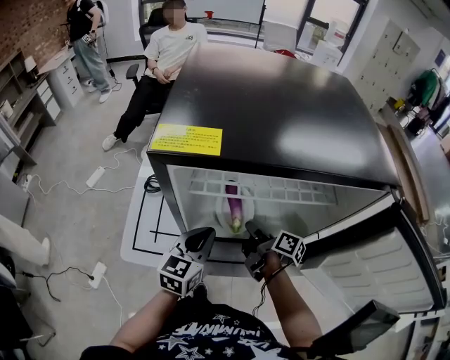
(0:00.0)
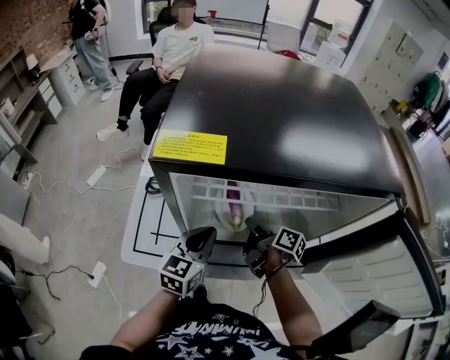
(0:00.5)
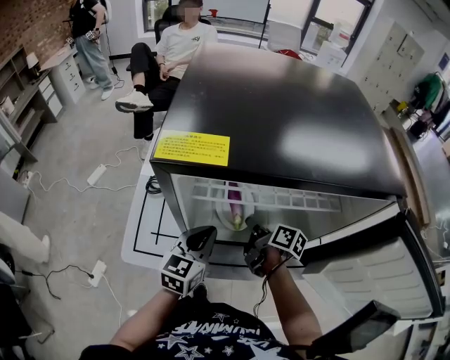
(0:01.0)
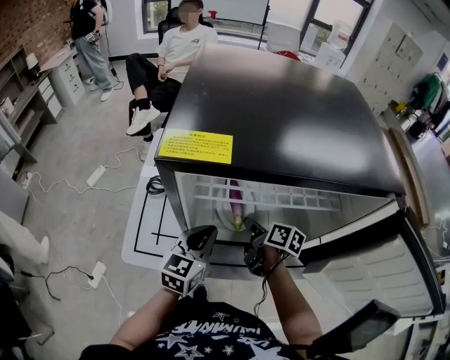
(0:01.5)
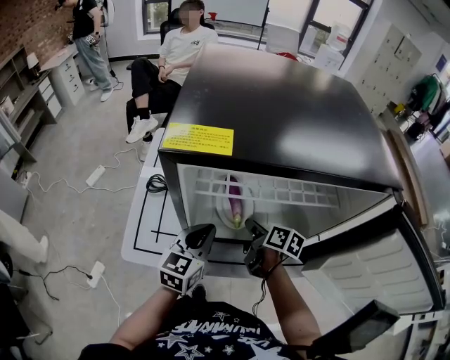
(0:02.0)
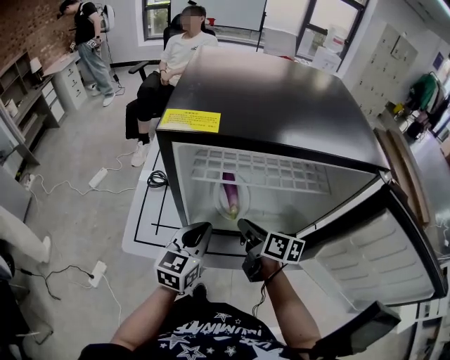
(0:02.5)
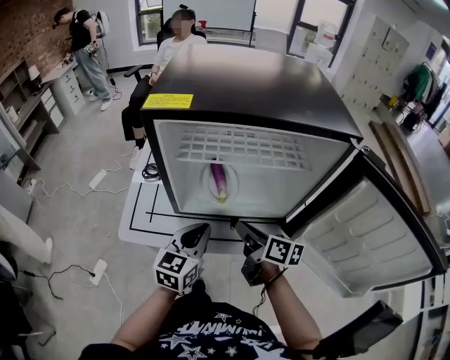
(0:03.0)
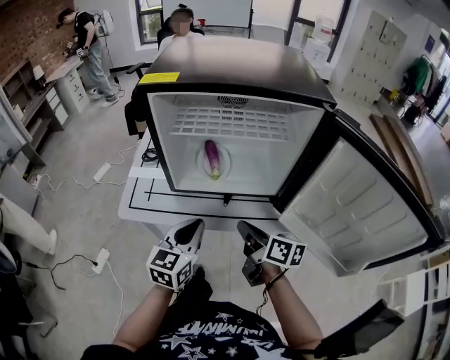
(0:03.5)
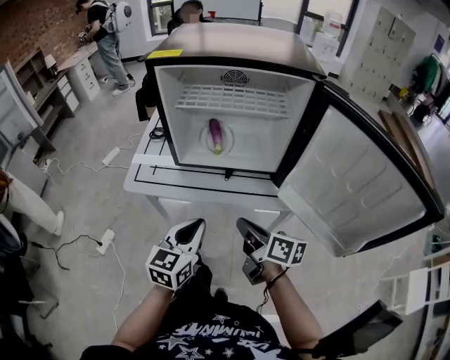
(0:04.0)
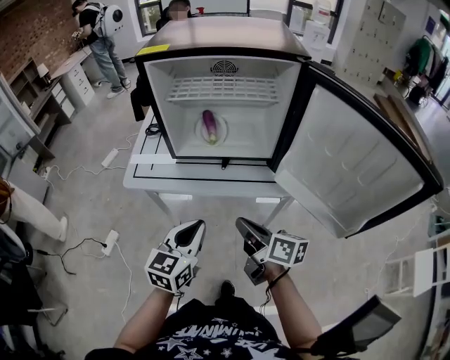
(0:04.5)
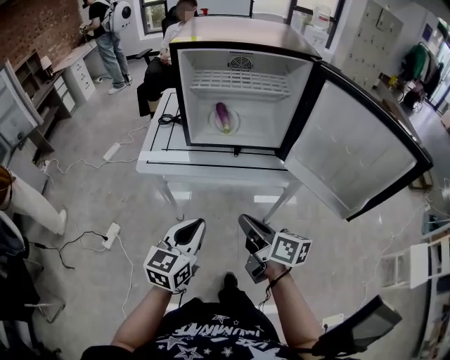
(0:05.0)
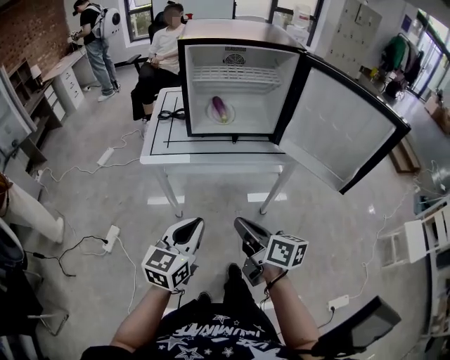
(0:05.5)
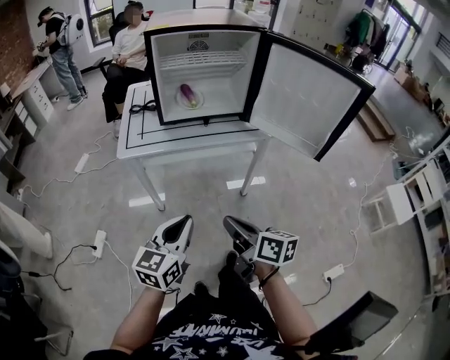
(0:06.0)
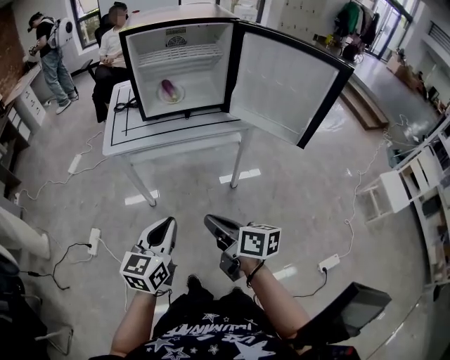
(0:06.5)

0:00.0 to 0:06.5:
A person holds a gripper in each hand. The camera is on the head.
0:02.0 to 0:04.5: The left gripper moves some 30 cm.
0:04.5 to 0:06.5: The left gripper moves approximately 25 cm.

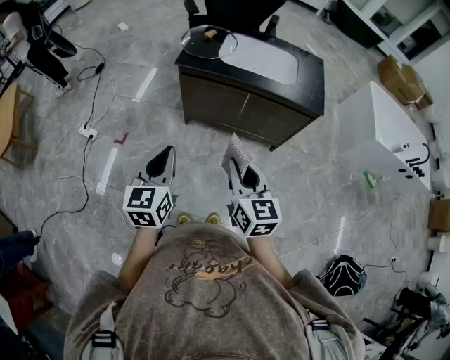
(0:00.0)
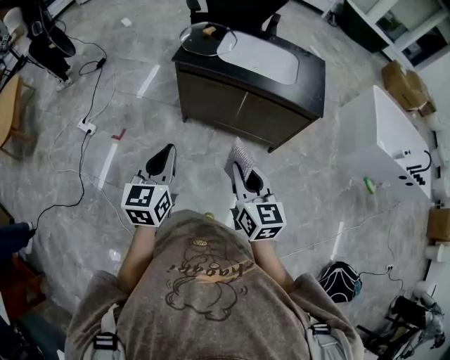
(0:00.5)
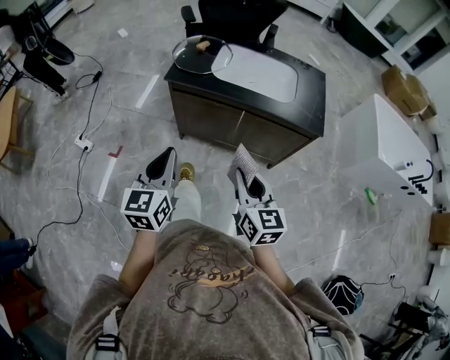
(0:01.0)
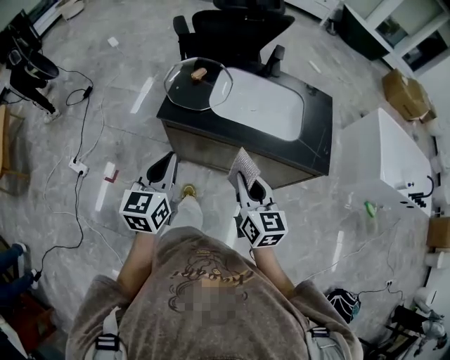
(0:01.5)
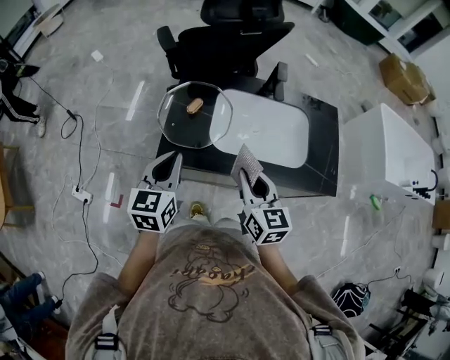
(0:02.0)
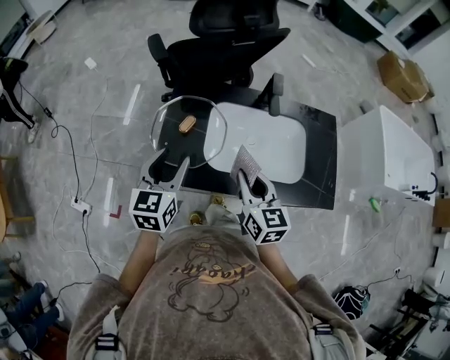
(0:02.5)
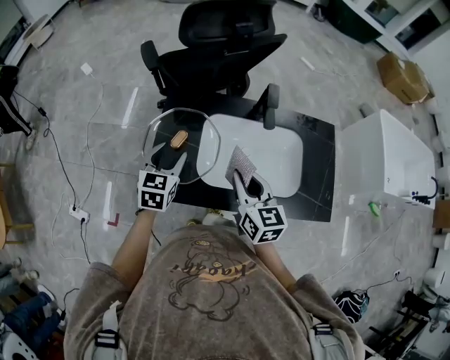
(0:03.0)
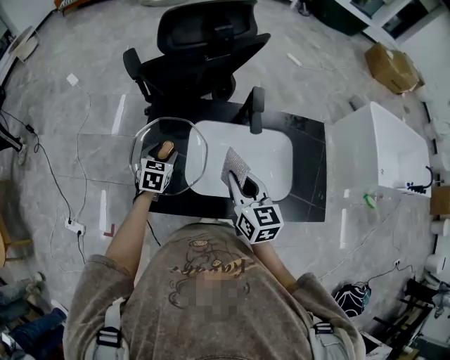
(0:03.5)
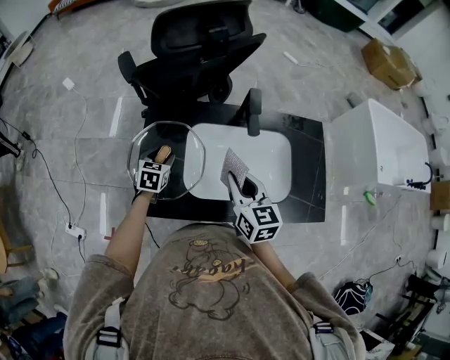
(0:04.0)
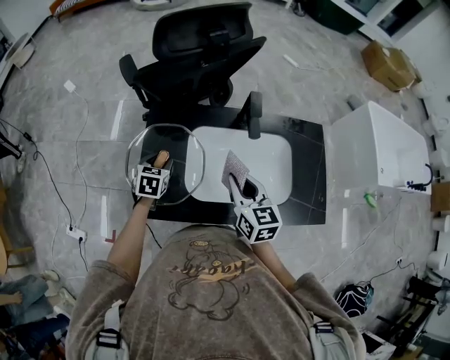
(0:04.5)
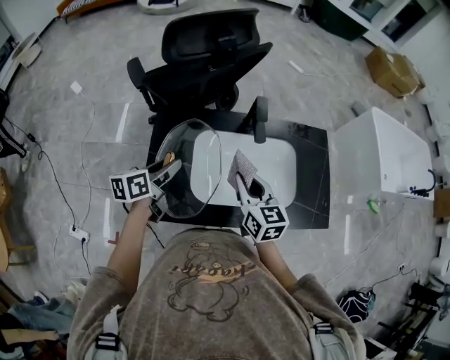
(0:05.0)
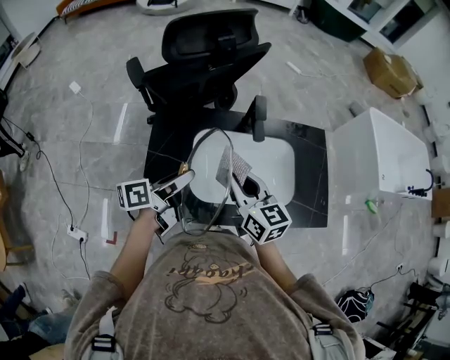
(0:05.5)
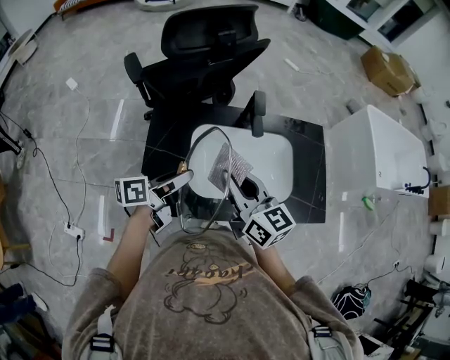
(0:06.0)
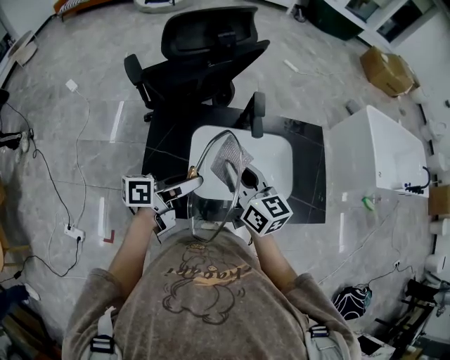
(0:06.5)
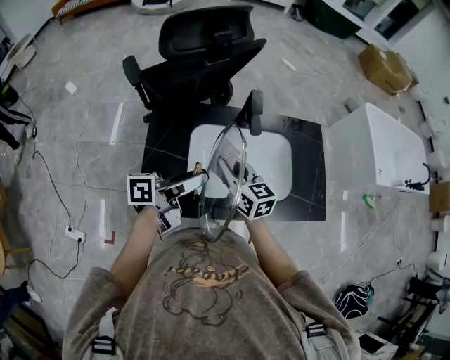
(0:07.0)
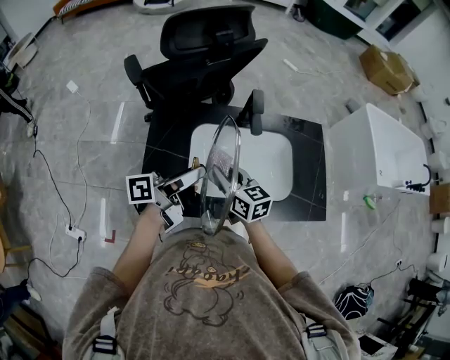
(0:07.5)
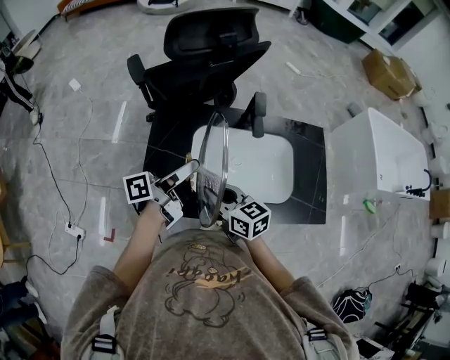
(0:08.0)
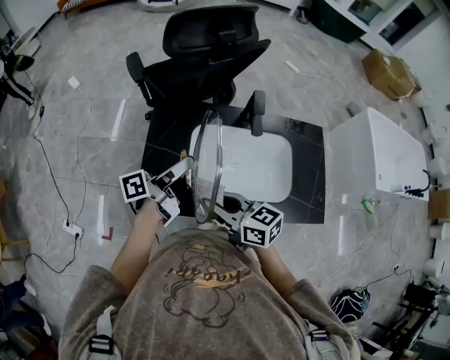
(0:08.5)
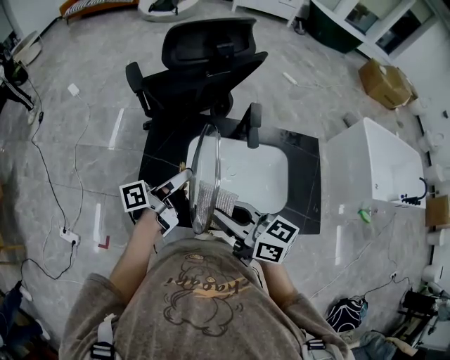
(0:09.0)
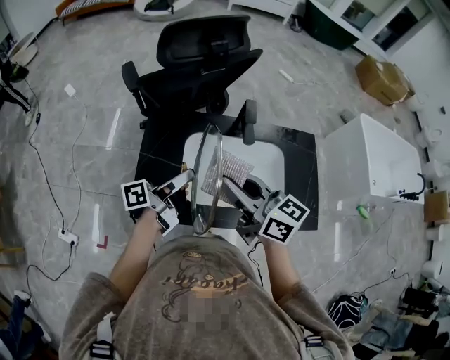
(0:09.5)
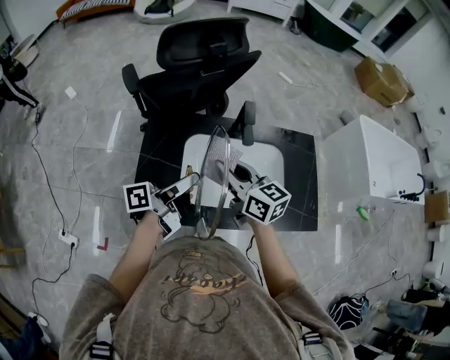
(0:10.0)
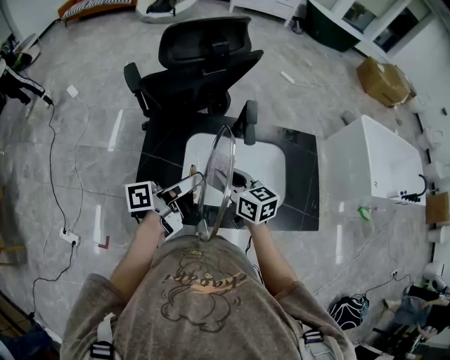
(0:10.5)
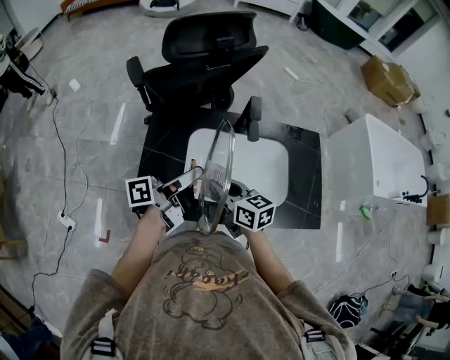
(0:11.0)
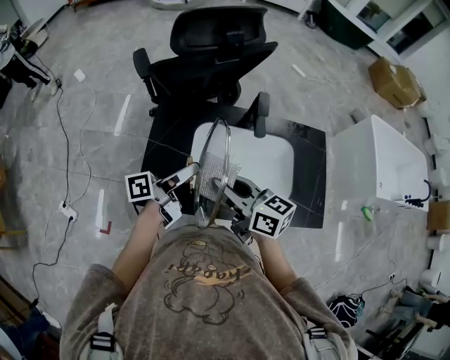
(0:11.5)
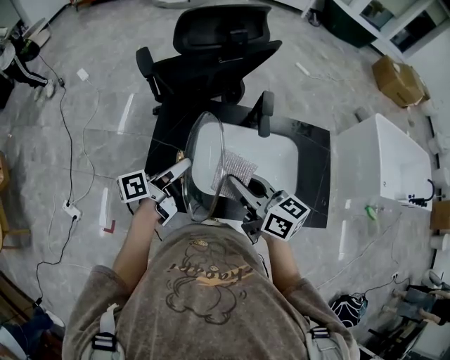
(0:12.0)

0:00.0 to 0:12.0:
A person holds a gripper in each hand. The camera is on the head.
0:00.0 to 0:02.0: Both grippers are carried forward, approximately 40 cm.
0:02.0 to 0:04.0: The left gripper is displaced forward and downward by roughly 30 cm, swivels approximately 30 degrees, and opens up. The right gripper is displaced forward by some 15 cm.
0:04.0 to 0:06.0: The left gripper shifts some 20 cm upward, backward and to the right, and points its fingers approximately 40 degrees further upward. Meanwhile the right gripper moves upward, roughly 10 cm.
0:06.0 to 0:08.0: The right gripper goes about 10 cm downward, and turns by some 20 degrees, while the left gripper swivels about 20 degrees.
0:08.0 to 0:10.0: The right gripper shifts roughly 15 cm upward, forward and to the right.
0:10.0 to 0:12.0: The right gripper heads backward, covering some 5 cm, and reaches about 10 cm downward, then returns; the left gripper travels to the left by some 5 cm.

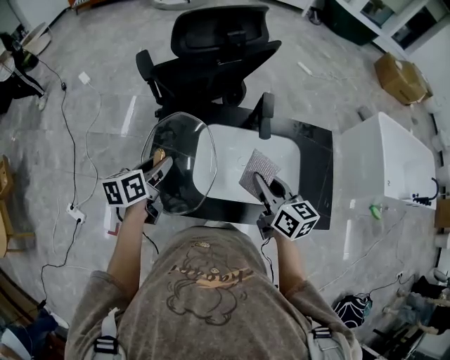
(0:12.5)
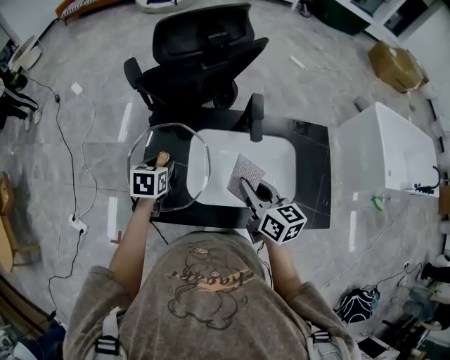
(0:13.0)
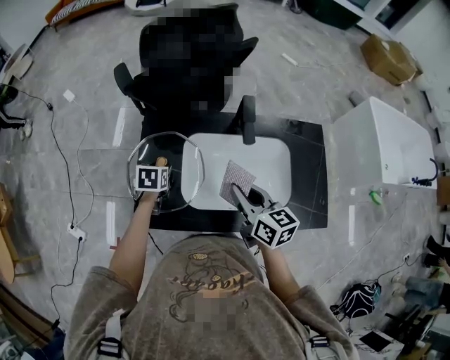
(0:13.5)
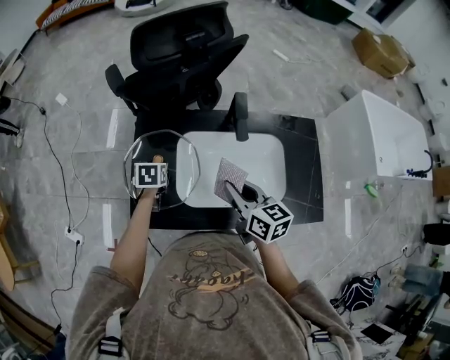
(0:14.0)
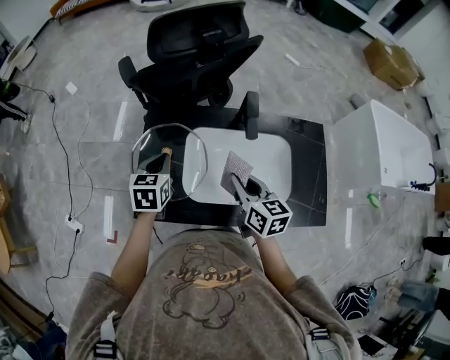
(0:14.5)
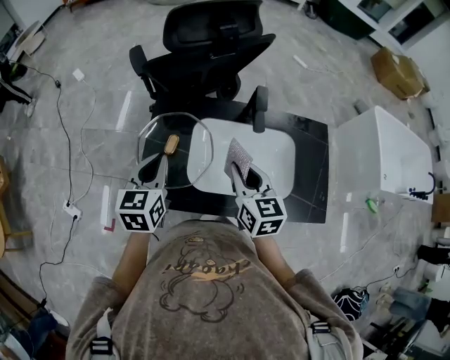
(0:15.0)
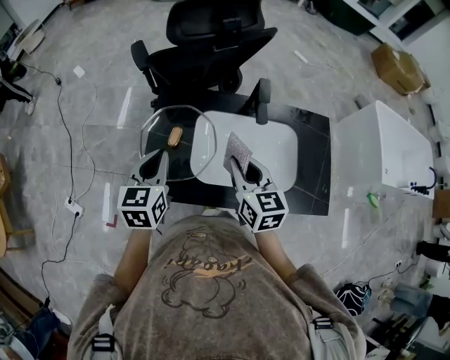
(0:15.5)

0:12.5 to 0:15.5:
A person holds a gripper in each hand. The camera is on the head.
0:12.5 to 0:14.0: The left gripper moves downward and forward, approximately 15 cm, and angles its fingers downward, by about 30 degrees.
0:14.0 to 0:15.5: The right gripper shifts by roughly 5 cm. Meanwhile the left gripper shifts approximately 20 cm upward and backward, angles its fingers upward, by approximately 40 degrees, and closes.

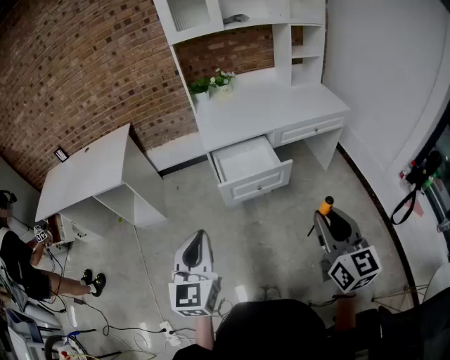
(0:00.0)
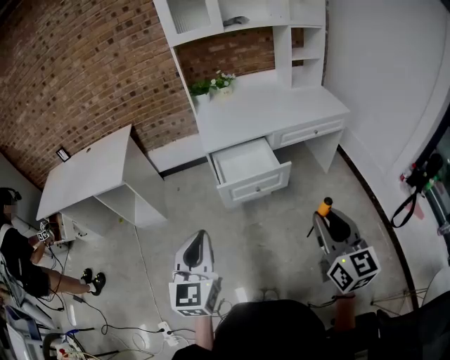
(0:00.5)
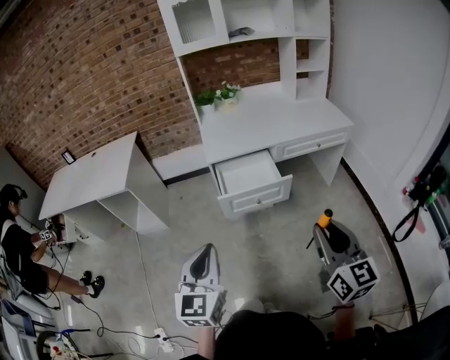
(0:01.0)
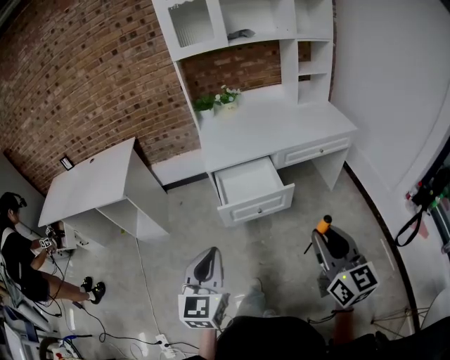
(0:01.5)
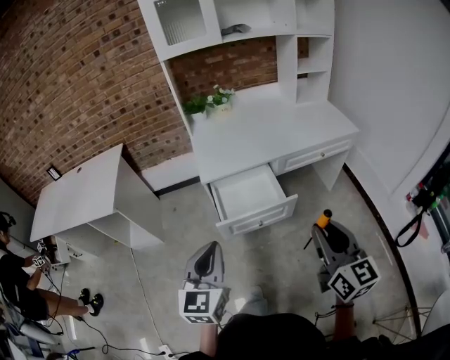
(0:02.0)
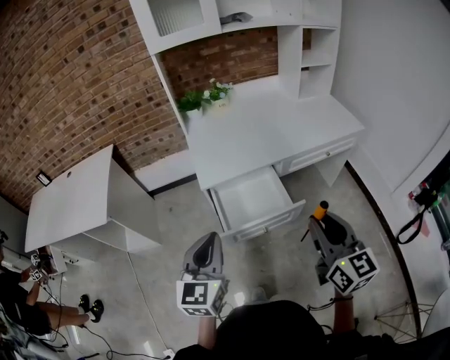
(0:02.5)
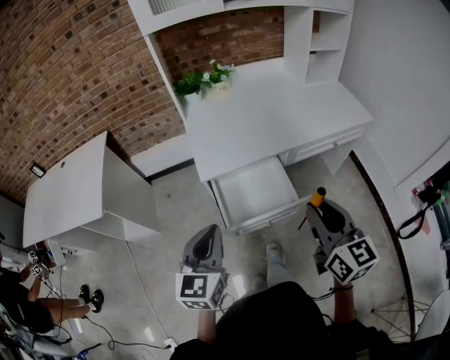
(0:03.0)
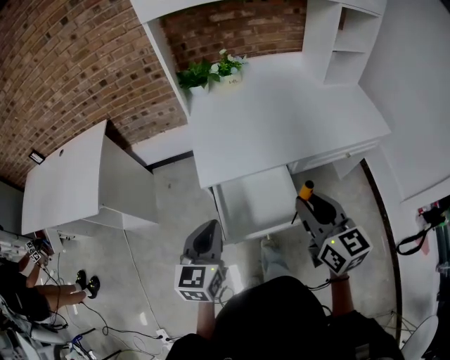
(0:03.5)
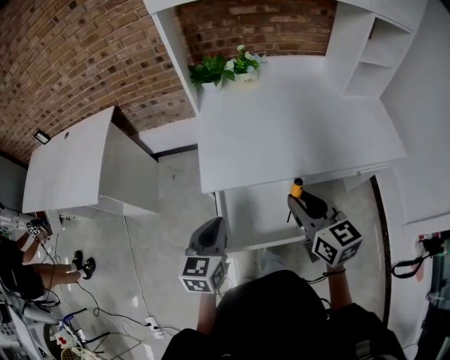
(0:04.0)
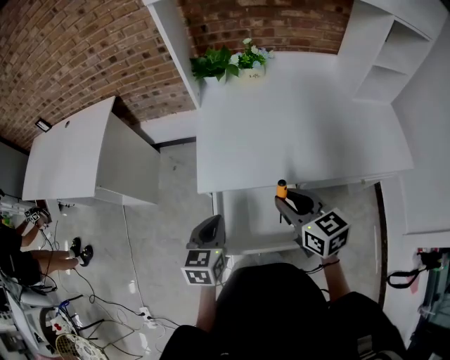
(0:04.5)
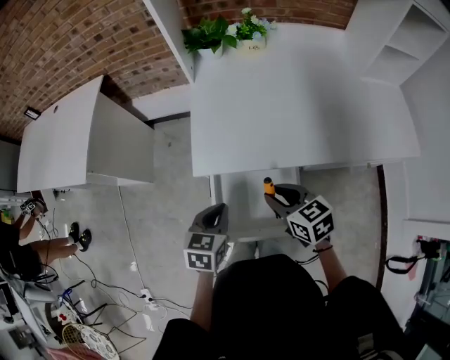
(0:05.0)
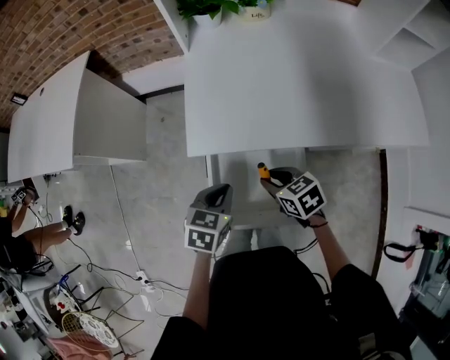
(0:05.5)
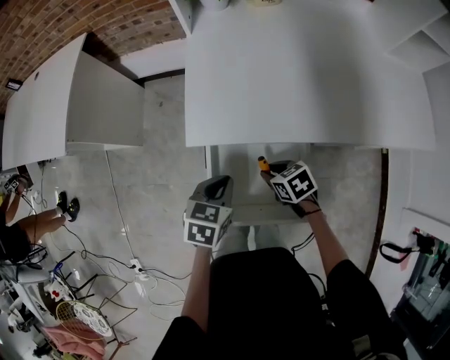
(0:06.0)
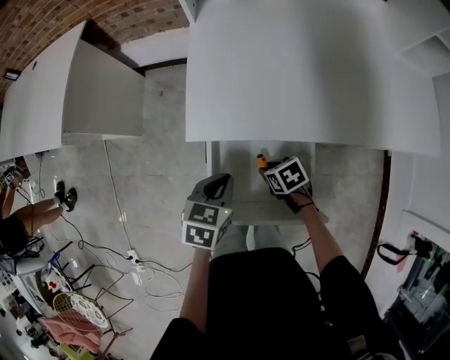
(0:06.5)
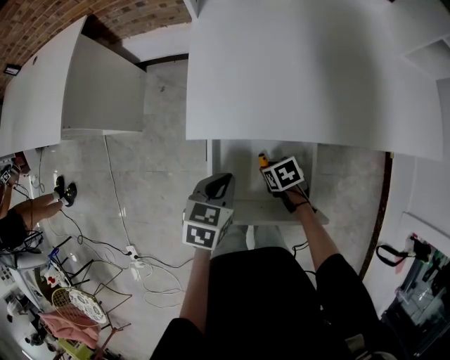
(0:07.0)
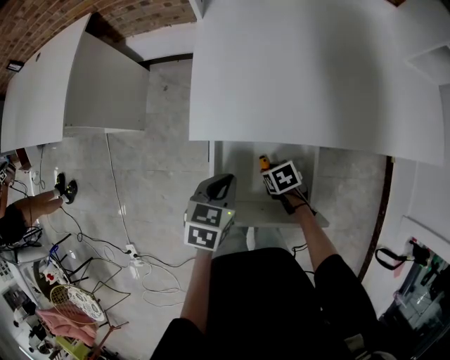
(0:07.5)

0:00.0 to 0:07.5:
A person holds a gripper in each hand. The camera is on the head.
0:00.0 to 0:02.0: Both grippers travel together forward, approximately 15 cm.
0:02.0 to 0:04.0: Both grippers move forward, approximately 35 cm. The right gripper rotates approximately 30 degrees, while the left gripper swivels roughly 20 degrees.
0:04.0 to 0:05.5: The right gripper heads downward, covering about 25 cm, and tilts its fingers some 30 degrees downward. The left gripper travels downward by approximately 15 cm, and rotates approximately 30 degrees.
0:05.5 to 0:07.5: The right gripper moves downward, approximately 15 cm, and changes its angle by roughly 20 degrees.
